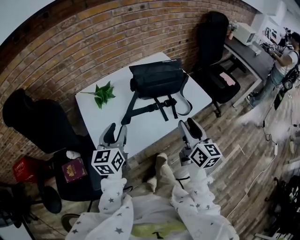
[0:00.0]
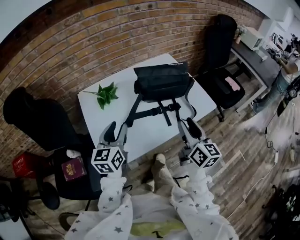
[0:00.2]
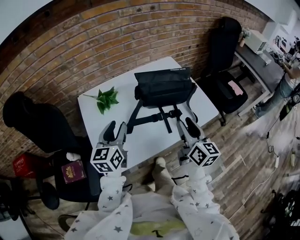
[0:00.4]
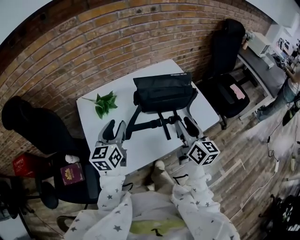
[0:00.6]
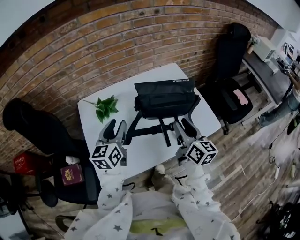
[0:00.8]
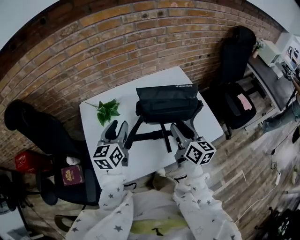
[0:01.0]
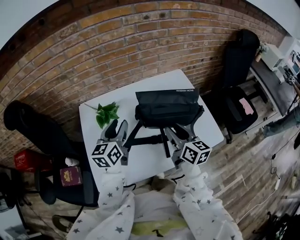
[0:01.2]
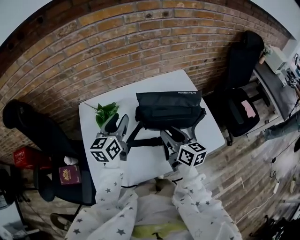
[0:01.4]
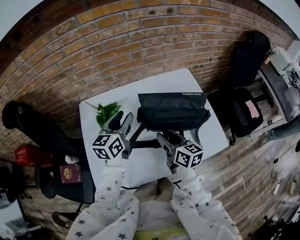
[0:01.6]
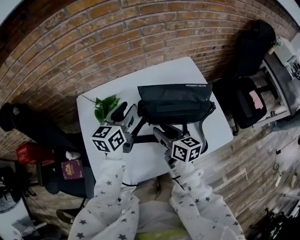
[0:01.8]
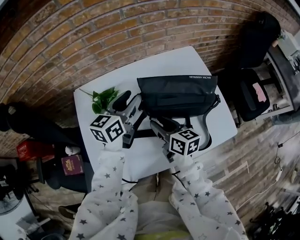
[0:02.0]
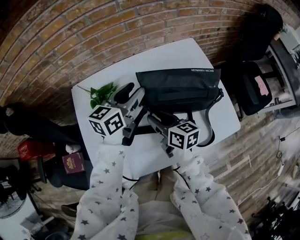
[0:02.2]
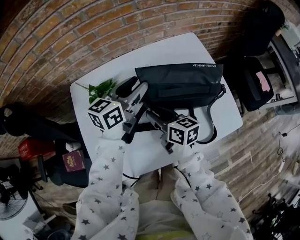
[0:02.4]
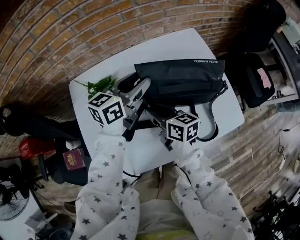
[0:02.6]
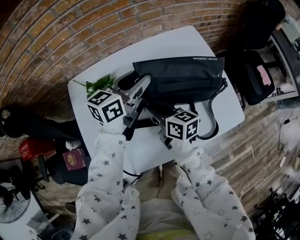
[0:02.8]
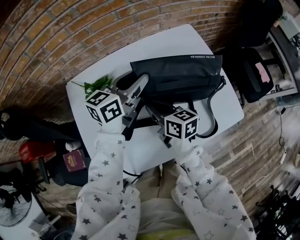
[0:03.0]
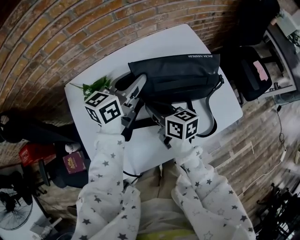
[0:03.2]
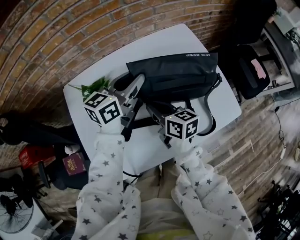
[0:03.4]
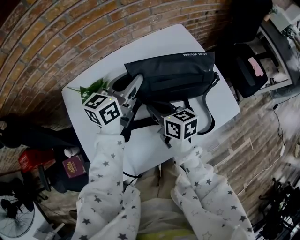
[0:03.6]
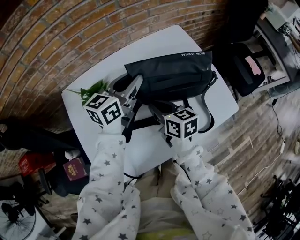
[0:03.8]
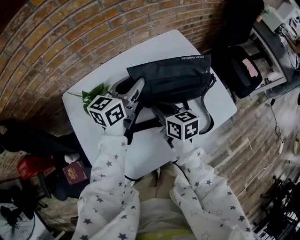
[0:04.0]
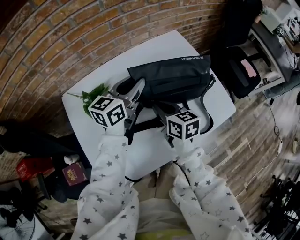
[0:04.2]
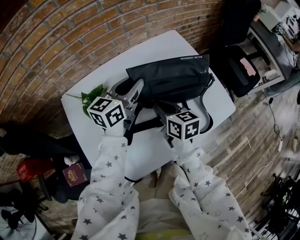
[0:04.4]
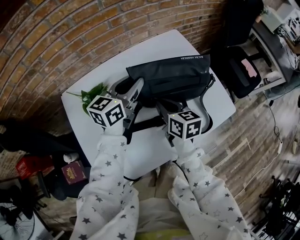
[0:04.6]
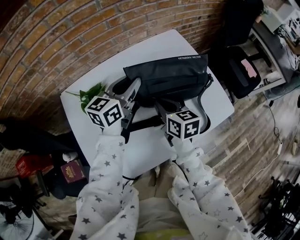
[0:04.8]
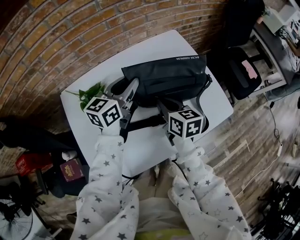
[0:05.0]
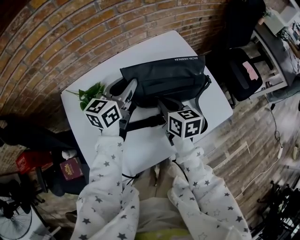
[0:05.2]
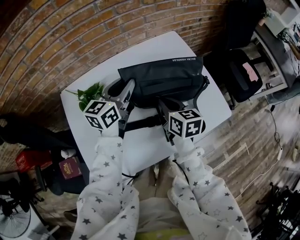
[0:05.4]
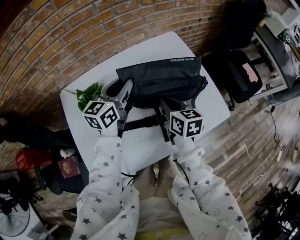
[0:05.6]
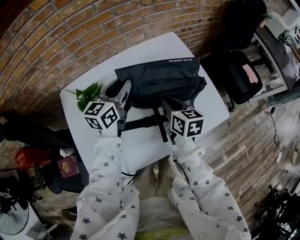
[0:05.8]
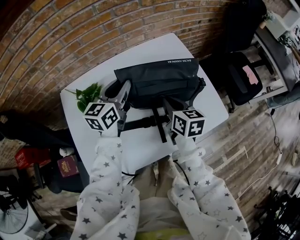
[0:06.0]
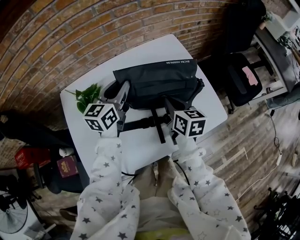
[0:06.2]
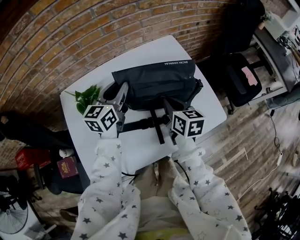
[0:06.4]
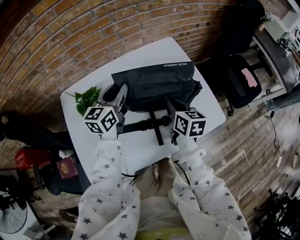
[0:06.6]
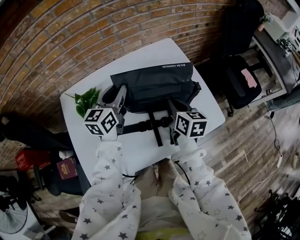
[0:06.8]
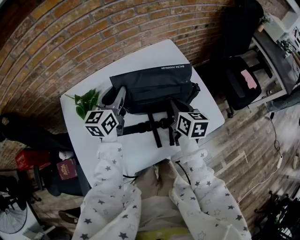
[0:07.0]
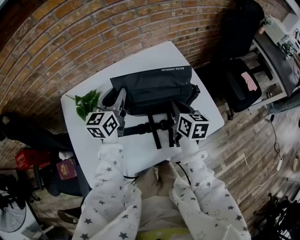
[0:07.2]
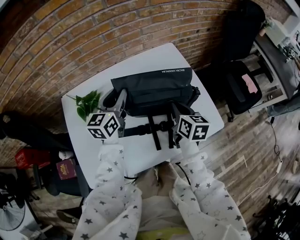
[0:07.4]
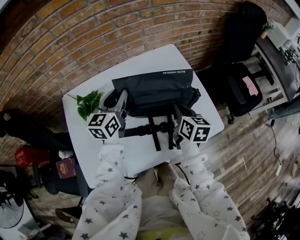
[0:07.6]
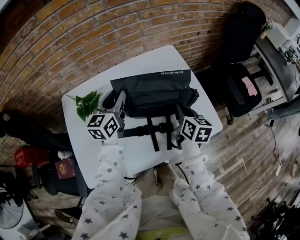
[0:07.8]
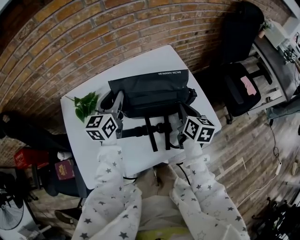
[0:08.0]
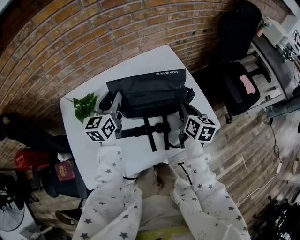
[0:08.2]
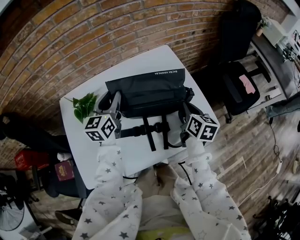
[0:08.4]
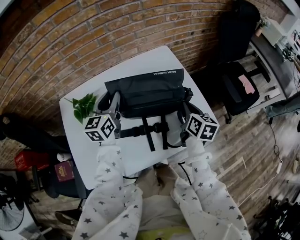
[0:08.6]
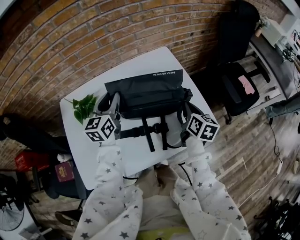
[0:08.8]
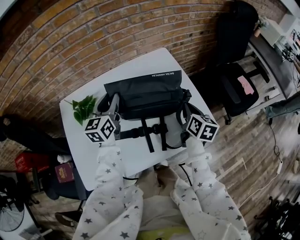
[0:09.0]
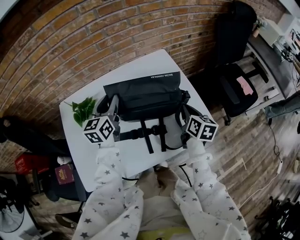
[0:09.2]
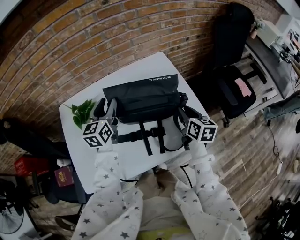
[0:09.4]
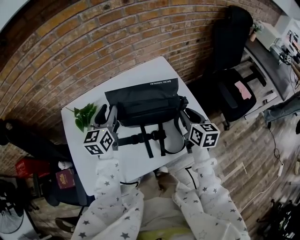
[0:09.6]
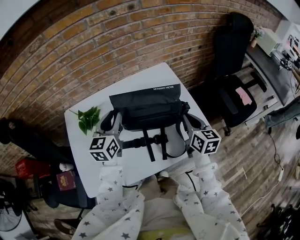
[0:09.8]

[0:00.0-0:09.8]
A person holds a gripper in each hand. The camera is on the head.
0:00.0 to 0:01.4: The two grippers go roughly 20 cm forward. The right gripper swivels approximately 30 degrees.
0:01.4 to 0:02.8: The right gripper moves to the left, downward and forward, approximately 15 cm, and closes up; the left gripper moves to the right and forward, some 10 cm, and rotates about 30 degrees.
0:02.8 to 0:04.2: The right gripper moves some 5 cm.
0:04.2 to 0:05.6: The right gripper shifts about 5 cm to the right.
0:05.6 to 0:07.0: The right gripper travels to the right by some 10 cm.
0:07.0 to 0:08.4: The right gripper heads to the right, covering approximately 10 cm.
0:08.4 to 0:09.8: The right gripper opens, then closes once more.

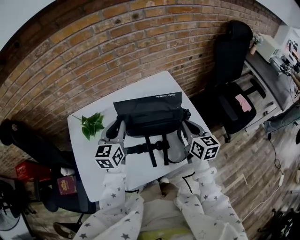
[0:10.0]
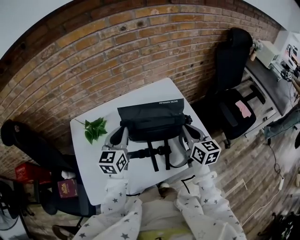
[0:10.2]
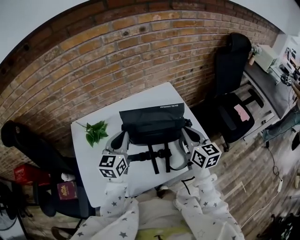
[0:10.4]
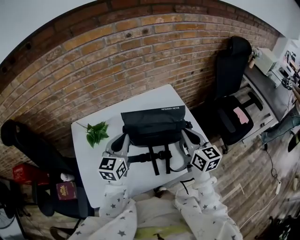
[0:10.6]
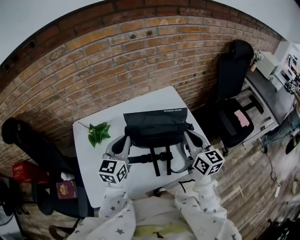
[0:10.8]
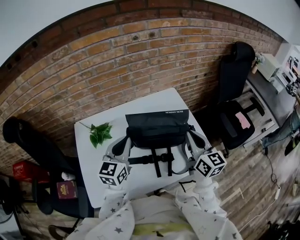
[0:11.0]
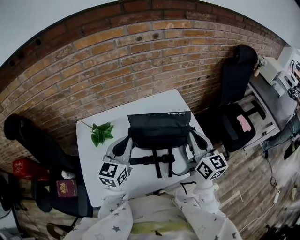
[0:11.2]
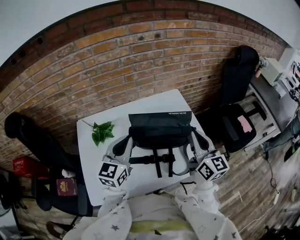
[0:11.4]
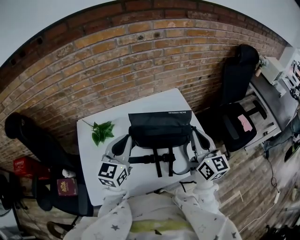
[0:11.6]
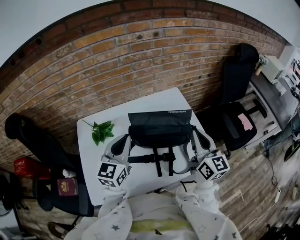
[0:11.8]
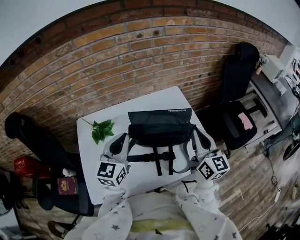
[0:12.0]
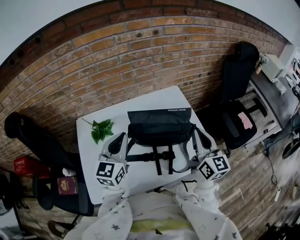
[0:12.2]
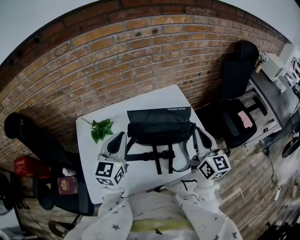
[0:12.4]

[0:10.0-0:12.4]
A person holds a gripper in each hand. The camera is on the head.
0:10.0 to 0:11.2: The left gripper travels upward by roughly 5 cm, while the right gripper shifts approximately 10 cm upward.
0:11.2 to 0:12.4: The grippers stay close to where they were, moving slightly.

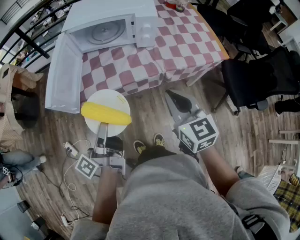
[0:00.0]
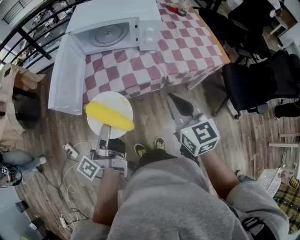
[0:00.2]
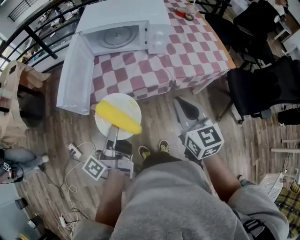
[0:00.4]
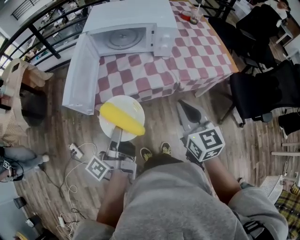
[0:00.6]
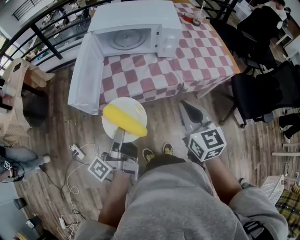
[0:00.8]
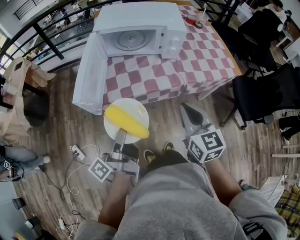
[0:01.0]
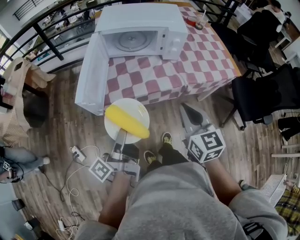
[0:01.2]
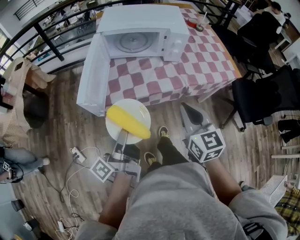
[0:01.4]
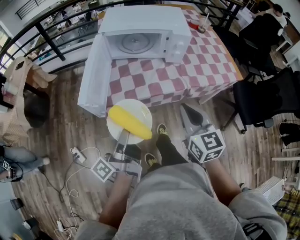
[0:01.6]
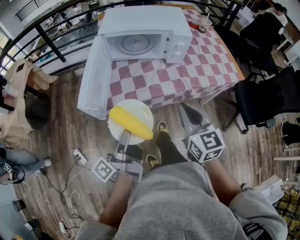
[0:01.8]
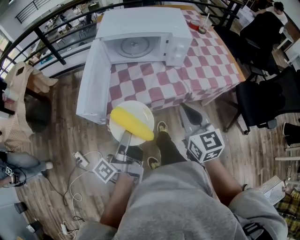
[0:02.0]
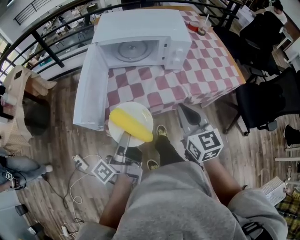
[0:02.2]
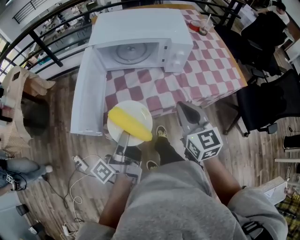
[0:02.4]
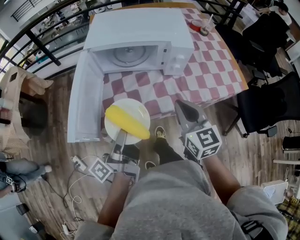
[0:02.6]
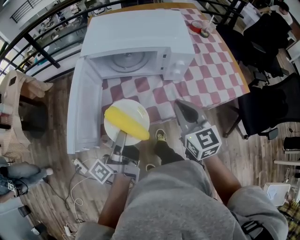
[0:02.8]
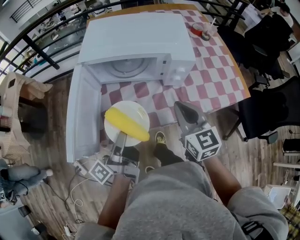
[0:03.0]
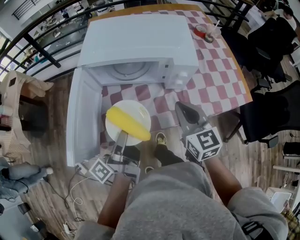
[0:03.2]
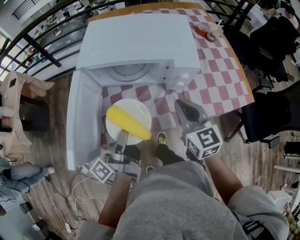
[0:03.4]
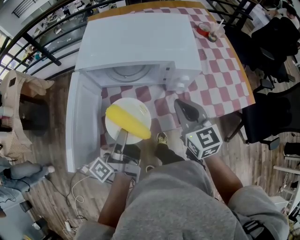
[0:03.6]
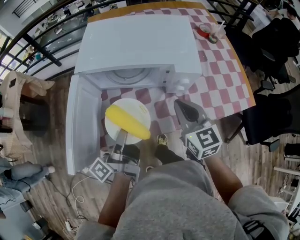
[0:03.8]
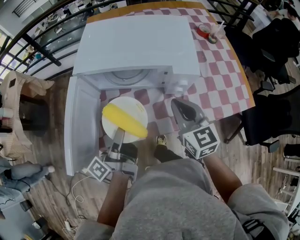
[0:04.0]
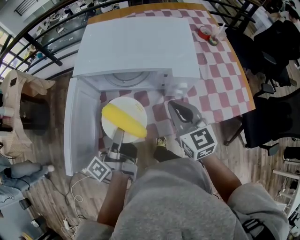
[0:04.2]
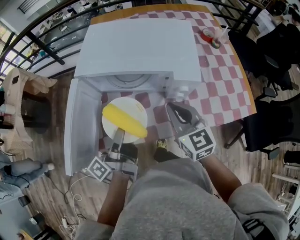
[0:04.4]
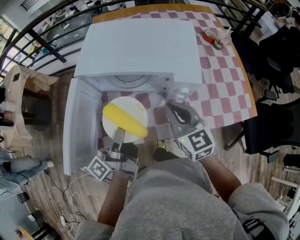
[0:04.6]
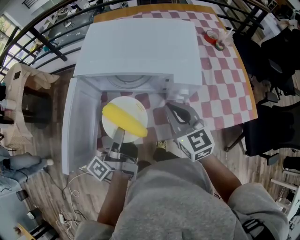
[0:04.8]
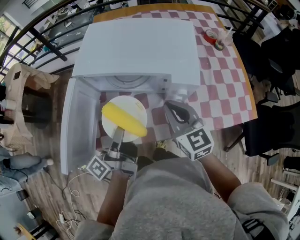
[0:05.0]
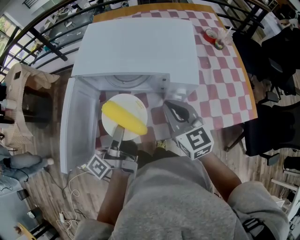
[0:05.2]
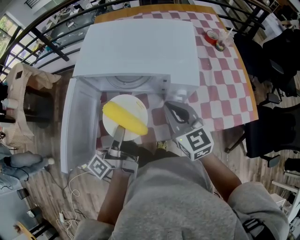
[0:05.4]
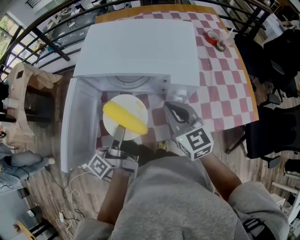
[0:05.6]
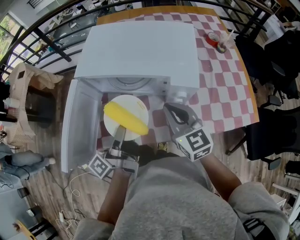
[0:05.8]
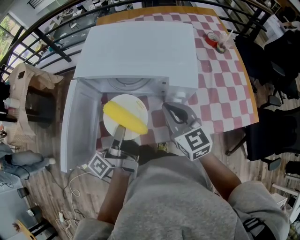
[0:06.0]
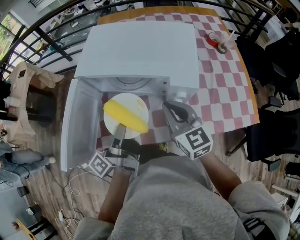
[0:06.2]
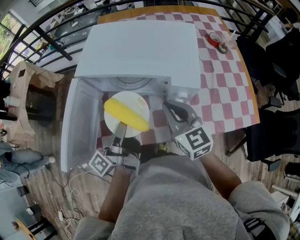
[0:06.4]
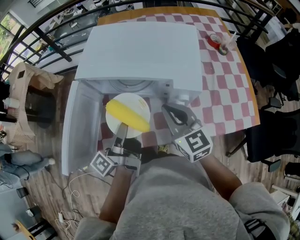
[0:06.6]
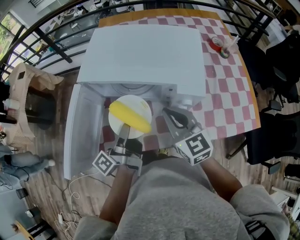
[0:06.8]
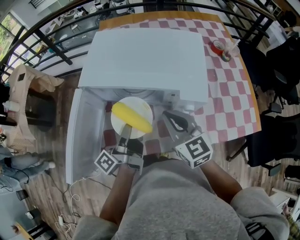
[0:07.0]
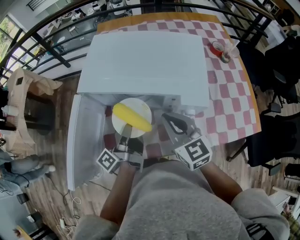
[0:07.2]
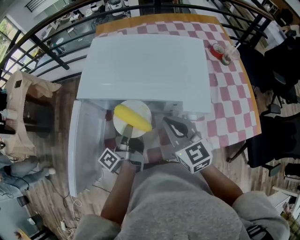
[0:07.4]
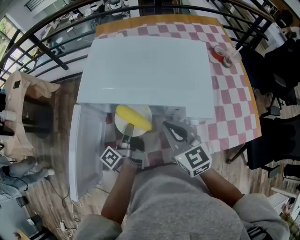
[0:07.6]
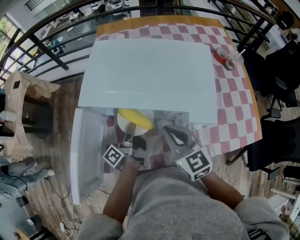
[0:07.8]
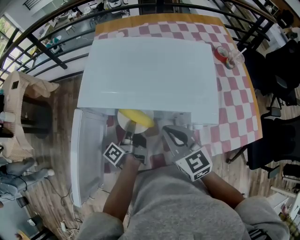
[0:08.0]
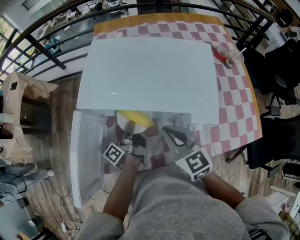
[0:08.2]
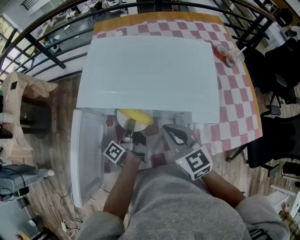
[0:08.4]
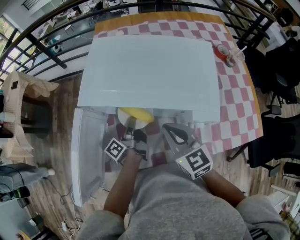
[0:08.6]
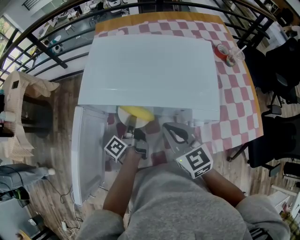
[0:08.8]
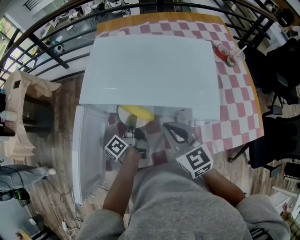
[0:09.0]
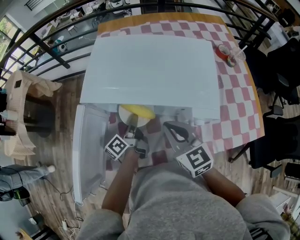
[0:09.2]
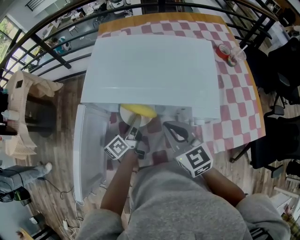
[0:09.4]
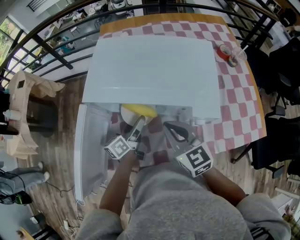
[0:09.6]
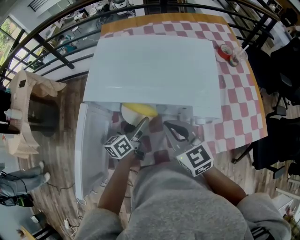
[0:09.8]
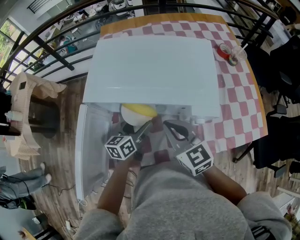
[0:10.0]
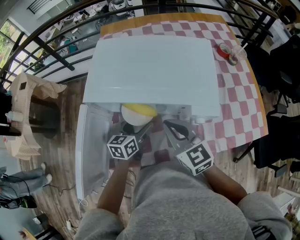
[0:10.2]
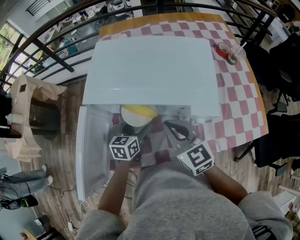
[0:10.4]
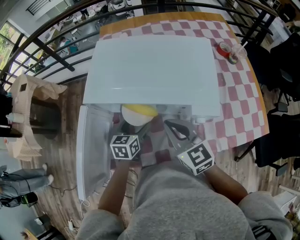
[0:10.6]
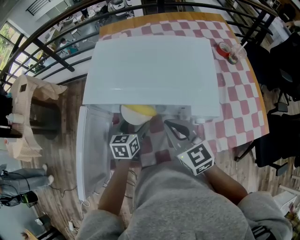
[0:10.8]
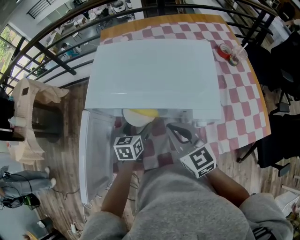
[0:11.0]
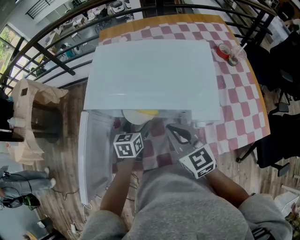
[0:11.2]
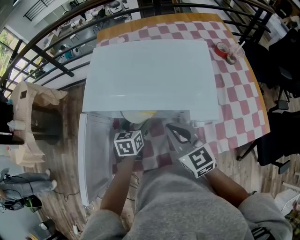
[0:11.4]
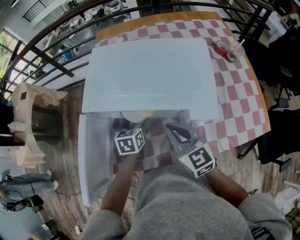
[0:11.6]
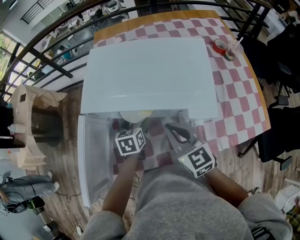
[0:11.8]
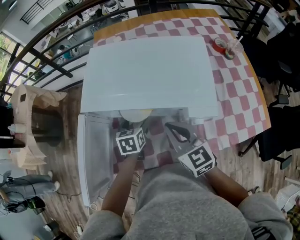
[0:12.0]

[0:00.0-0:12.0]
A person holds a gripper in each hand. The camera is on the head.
0:00.0 to 0:01.6: Both grippers travel together to the left, roughly 10 cm.
0:01.6 to 0:03.0: Both grippers move forward, about 20 cm.
0:03.0 to 0:04.4: The two grippers go approximately 10 cm forward.
0:04.4 to 0:06.0: The grippers move only a little.
0:06.0 to 0:07.6: The left gripper heads forward and downward, covering some 15 cm. Meanwhile the right gripper shifts by about 5 cm.
0:07.6 to 0:09.0: The left gripper changes place by about 5 cm.
0:09.0 to 0:10.4: The left gripper twists about 60 degrees clockwise, seen from behind, and opens.
0:10.4 to 0:12.0: There are only small adjustments of the grippers.
